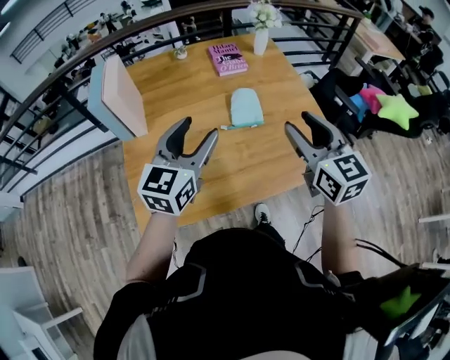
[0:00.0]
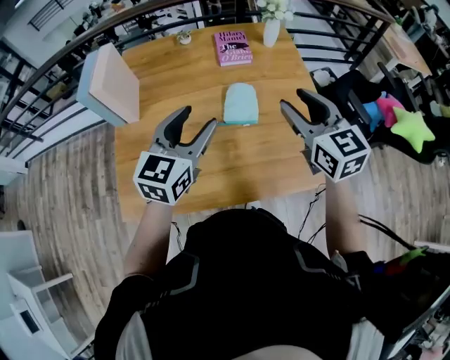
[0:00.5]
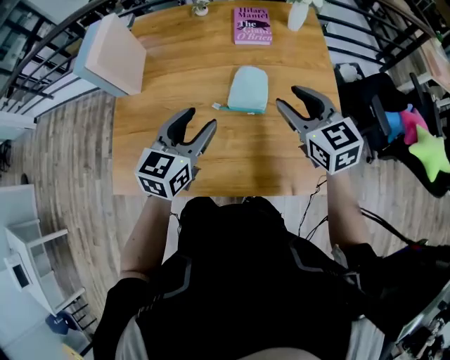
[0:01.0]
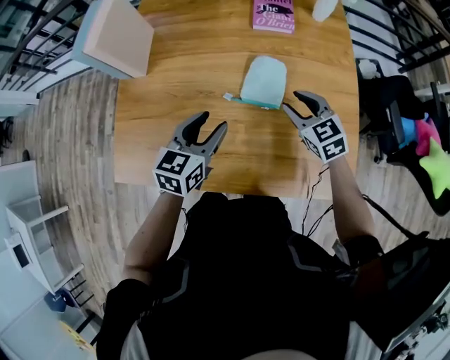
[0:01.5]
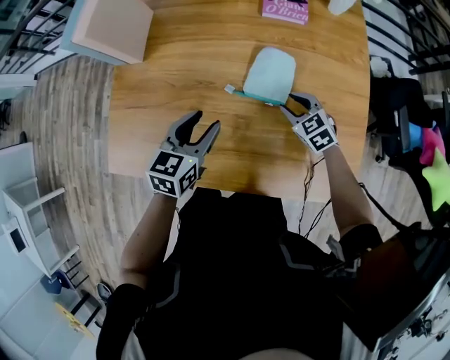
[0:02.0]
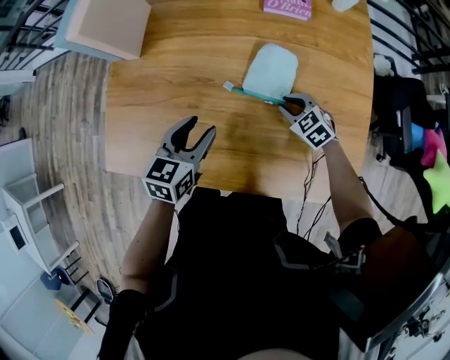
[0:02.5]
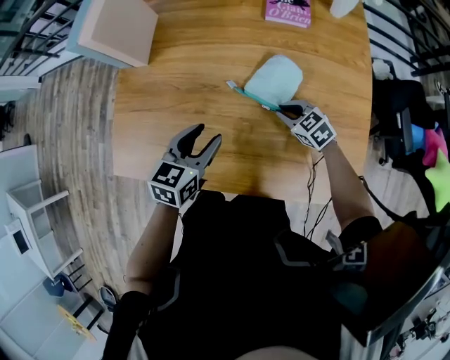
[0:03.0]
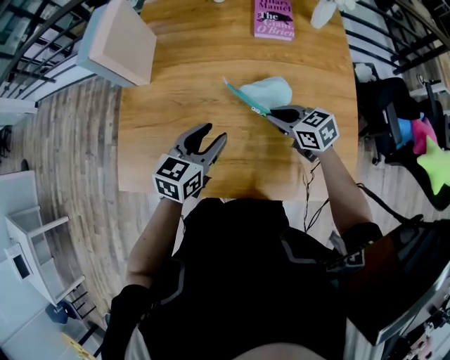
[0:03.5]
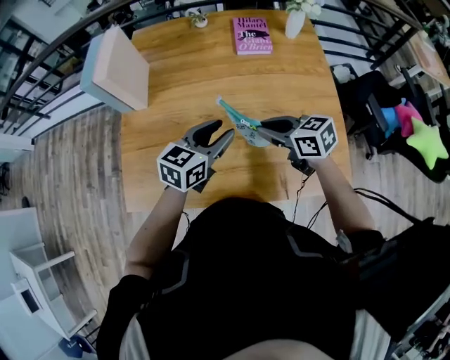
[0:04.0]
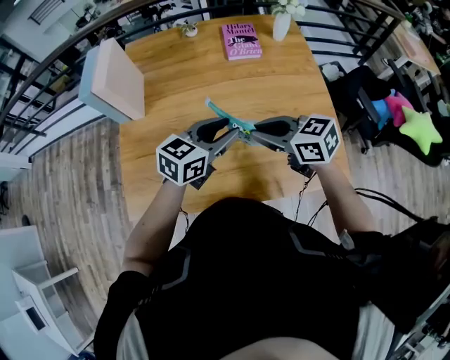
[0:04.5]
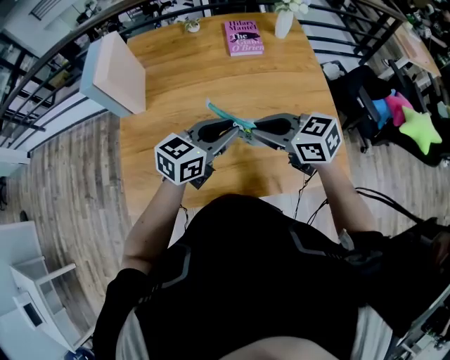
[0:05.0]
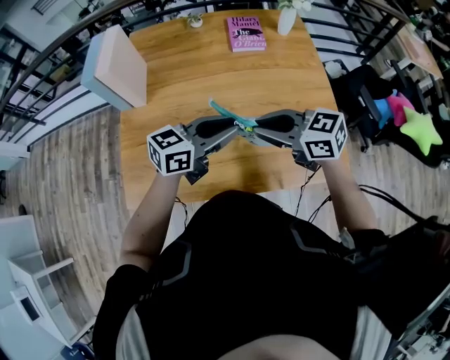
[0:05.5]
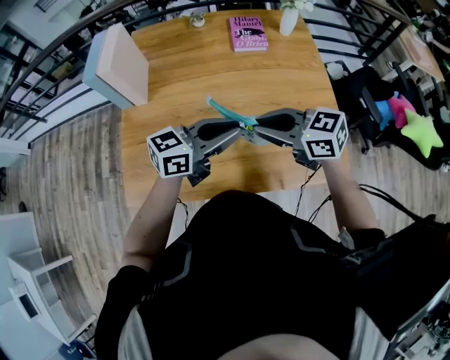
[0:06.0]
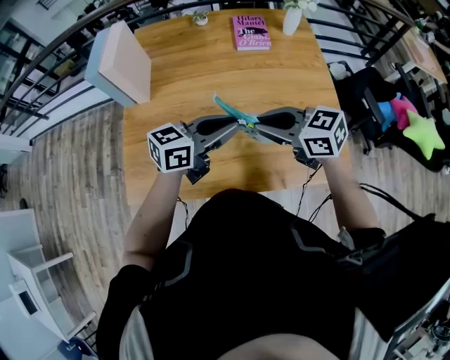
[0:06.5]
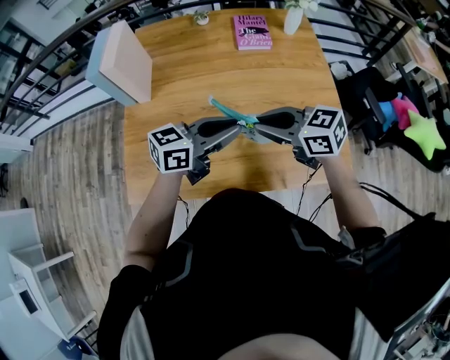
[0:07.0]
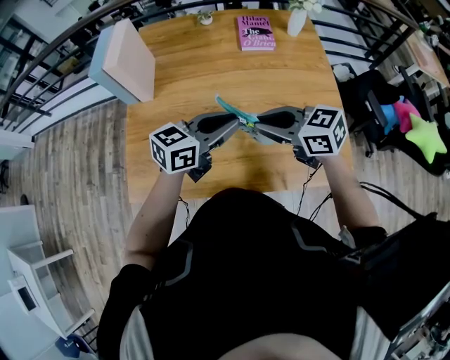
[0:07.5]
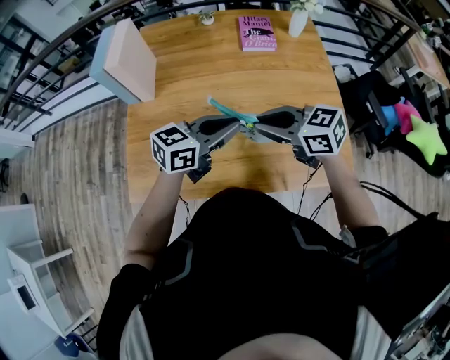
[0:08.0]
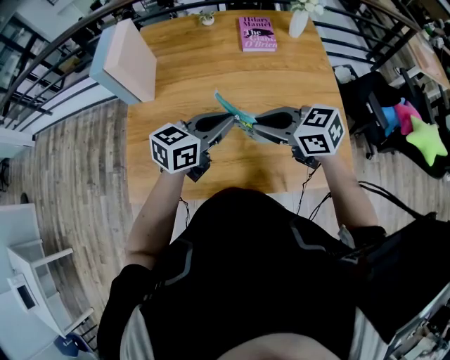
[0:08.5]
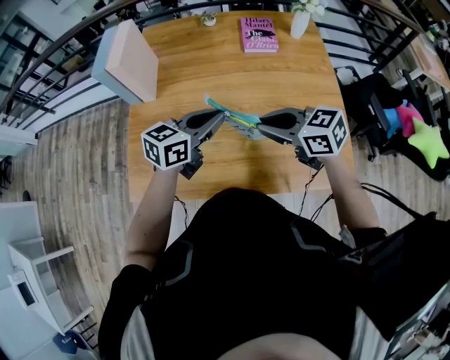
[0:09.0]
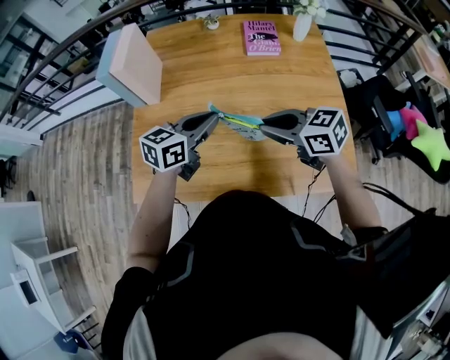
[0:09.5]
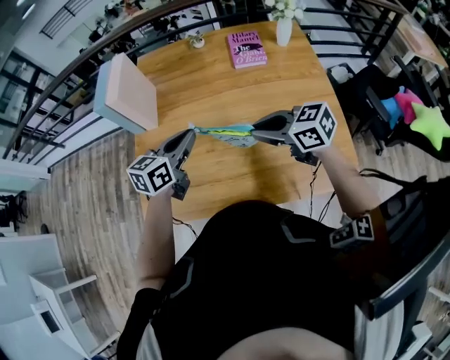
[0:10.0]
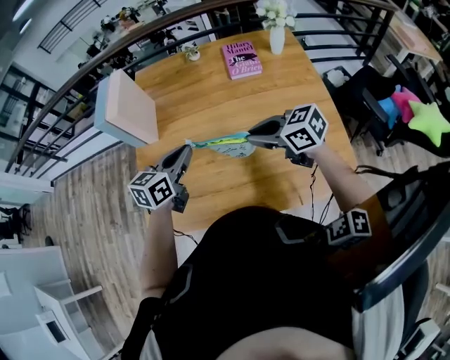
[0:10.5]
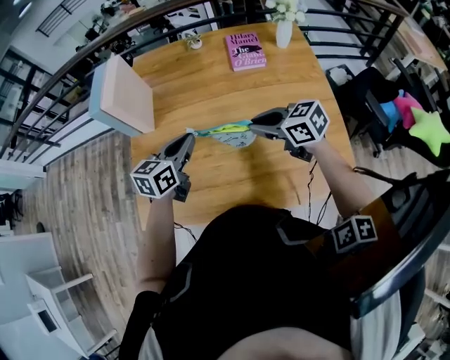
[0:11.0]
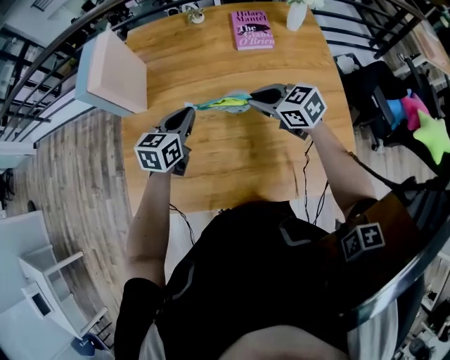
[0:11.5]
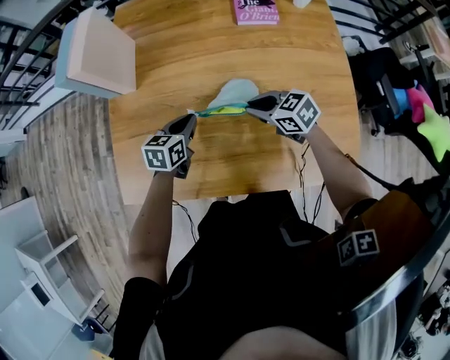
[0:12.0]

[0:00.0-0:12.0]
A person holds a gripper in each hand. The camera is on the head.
0:00.0 to 0:02.0: The left gripper goes some 20 cm downward, and turns by about 40 degrees, while the right gripper goes approximately 35 cm downward, and points its fingers approximately 40 degrees further downward.
0:02.0 to 0:04.0: The right gripper is displaced upward and to the left by some 20 cm, turns by roughly 30 degrees, and closes, while the left gripper is displaced upward by approximately 5 cm, and rotates roughly 20 degrees.
0:04.0 to 0:06.0: The grippers both shift upward by approximately 5 cm. The left gripper swivels some 30 degrees, and closes up.
0:06.0 to 0:08.0: The grippers move only a little.
0:08.0 to 0:10.0: The left gripper moves some 10 cm, and changes its angle by some 20 degrees.
0:10.0 to 0:12.0: The right gripper goes about 20 cm downward and forward. Meanwhile the left gripper heads downward, covering some 20 cm, and swivels about 20 degrees.

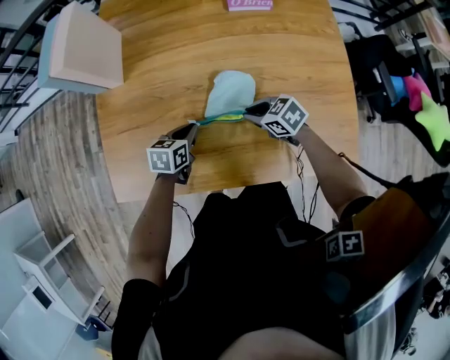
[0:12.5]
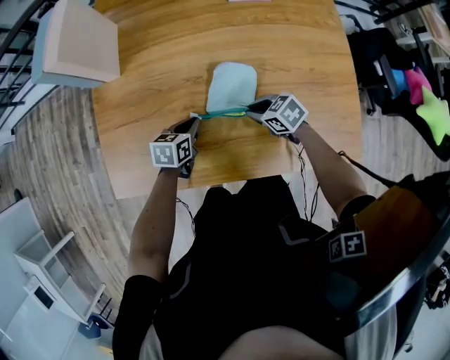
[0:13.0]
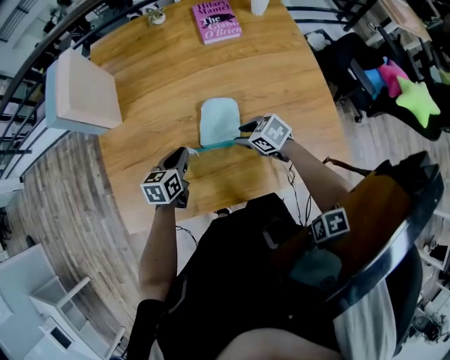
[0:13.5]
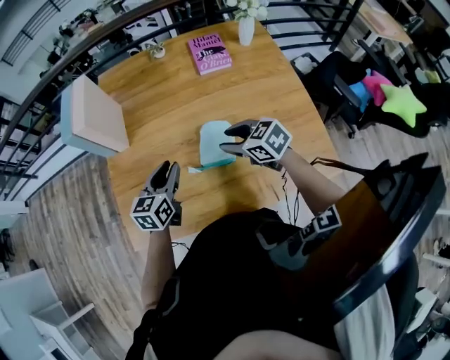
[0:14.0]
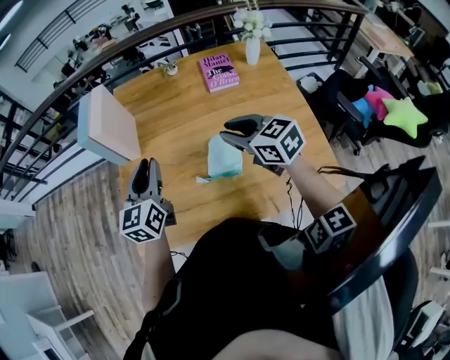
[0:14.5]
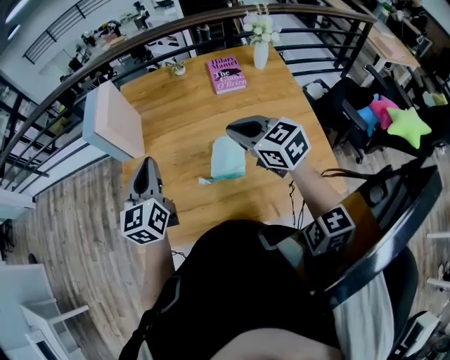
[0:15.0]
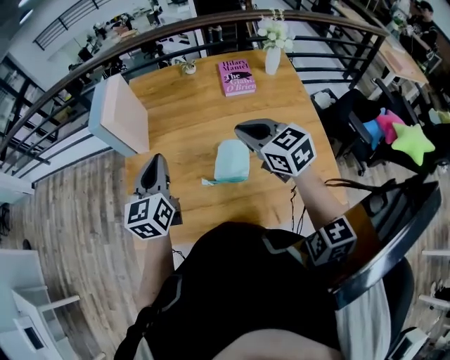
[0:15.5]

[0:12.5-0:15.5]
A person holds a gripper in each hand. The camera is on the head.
0:12.5 to 0:14.0: Both grippers move upward, about 20 cm. The left gripper turns by roughly 30 degrees, while the right gripper opens.
0:14.0 to 0:15.5: Both grippers travel together upward, some 15 cm. The left gripper turns by about 20 degrees, while the right gripper changes its angle by approximately 20 degrees, and closes its fingers.

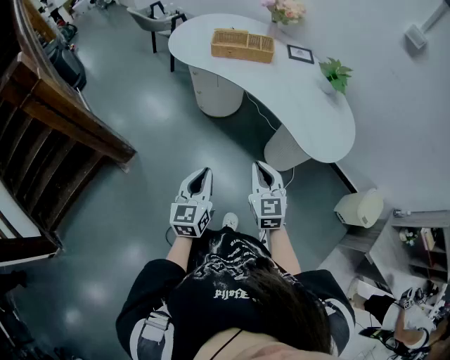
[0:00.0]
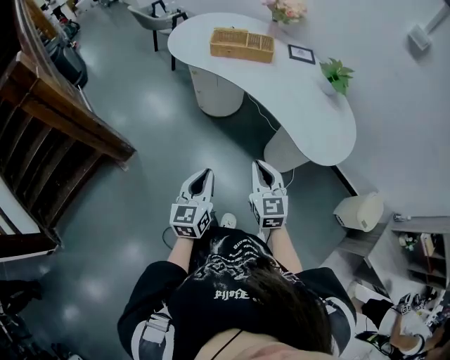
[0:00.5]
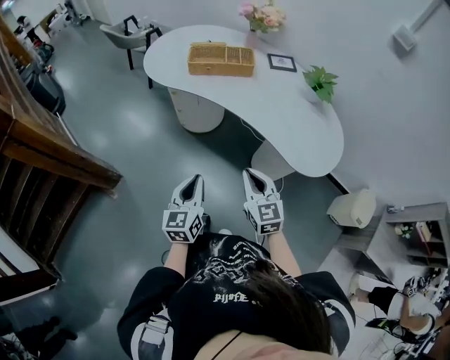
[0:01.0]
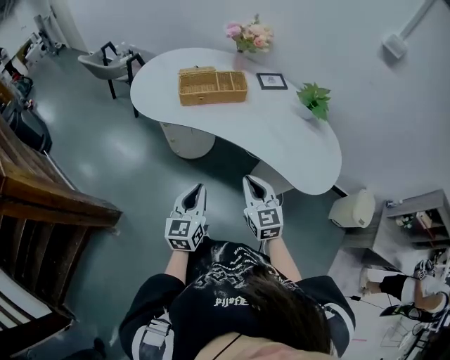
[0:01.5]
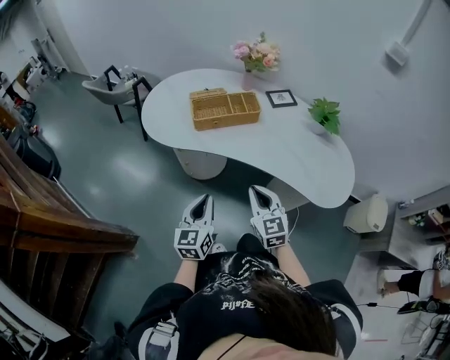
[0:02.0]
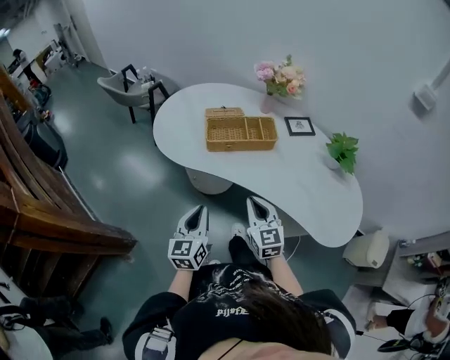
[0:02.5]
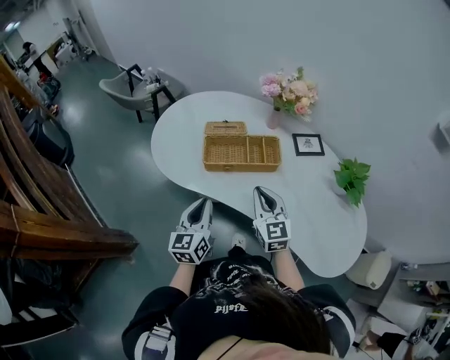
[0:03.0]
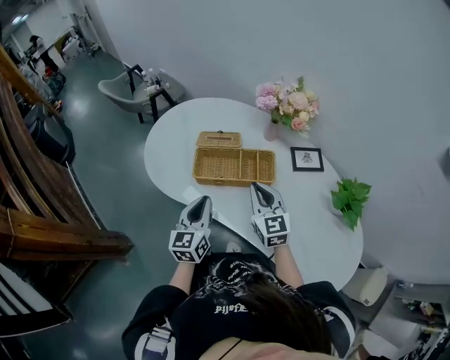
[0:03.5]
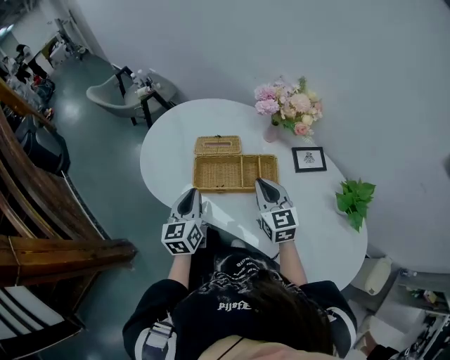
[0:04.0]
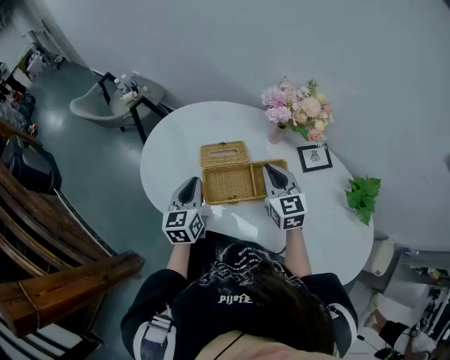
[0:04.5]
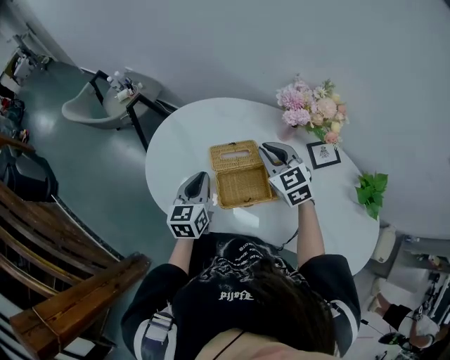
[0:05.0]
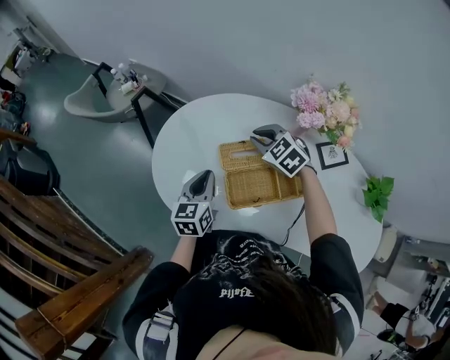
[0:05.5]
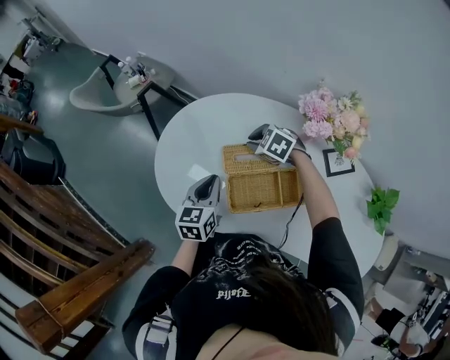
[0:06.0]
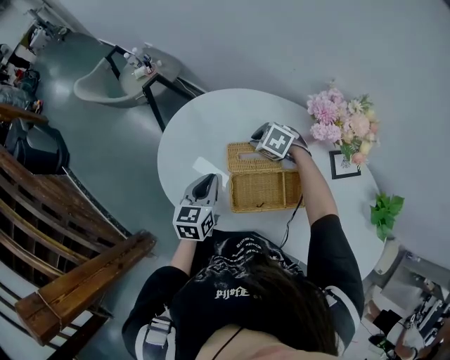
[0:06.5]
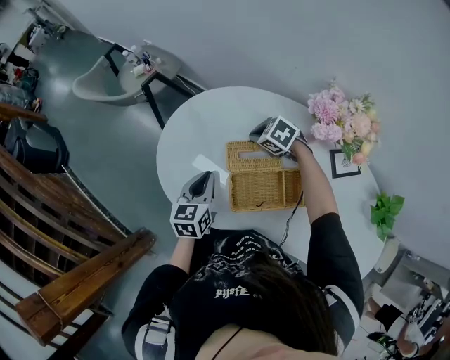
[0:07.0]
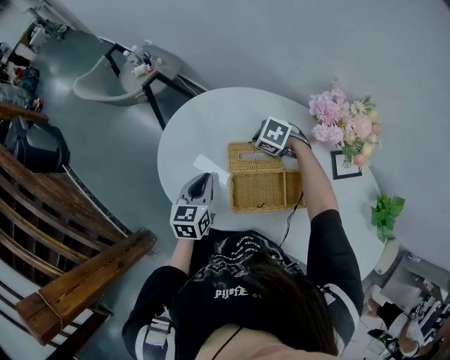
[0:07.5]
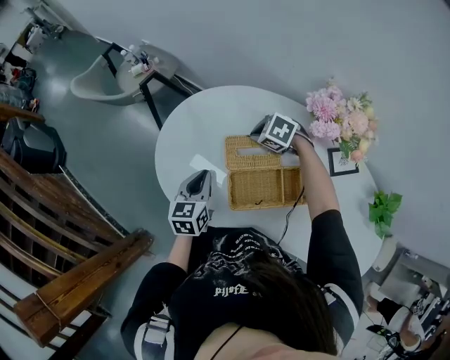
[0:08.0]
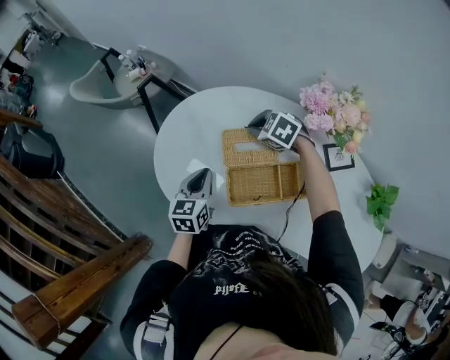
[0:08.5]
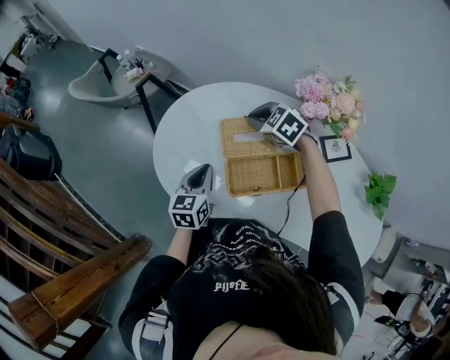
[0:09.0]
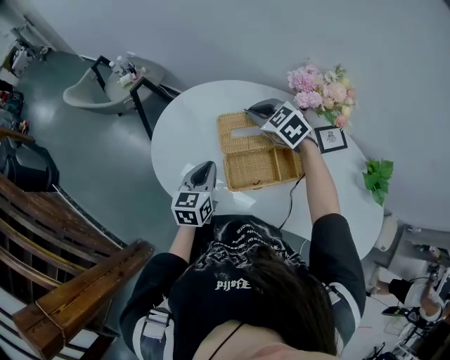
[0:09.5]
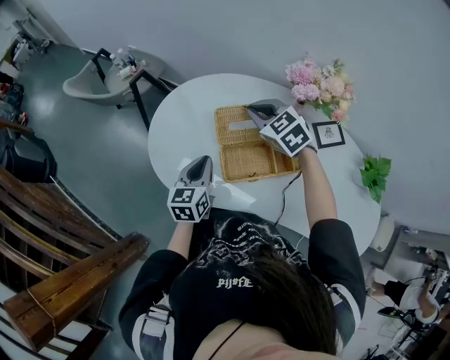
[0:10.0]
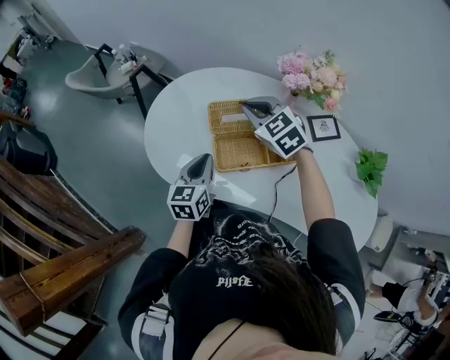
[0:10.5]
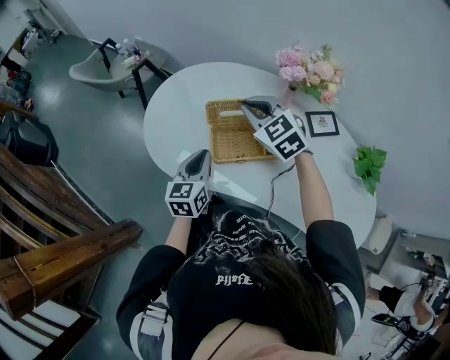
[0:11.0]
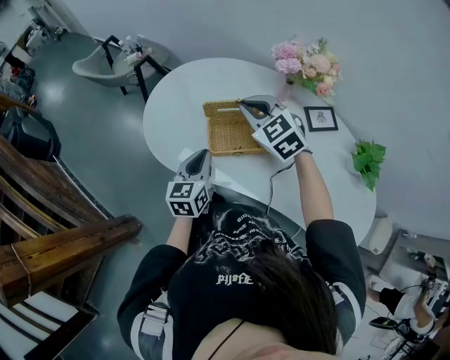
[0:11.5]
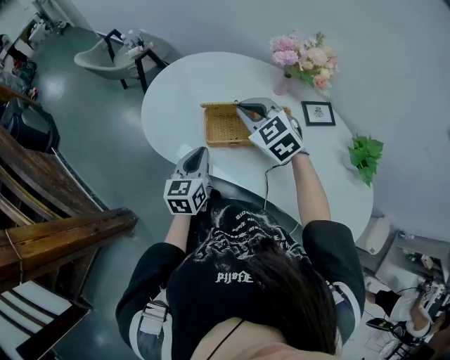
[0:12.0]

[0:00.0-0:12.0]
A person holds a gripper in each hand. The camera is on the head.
0:00.0 to 0:02.0: The left gripper goes approximately 30 cm forward. Meanwhile the right gripper shifts approximately 25 cm forward and to the left.
0:02.0 to 0:04.0: The two grippers go approximately 40 cm forward.
0:04.0 to 0:06.0: The right gripper shifts approximately 30 cm forward, to the left and downward, and tips its fingers downward by roughly 40 degrees. Meanwhile the left gripper travels forward by approximately 15 cm, and turns by roughly 20 degrees.
0:06.0 to 0:08.0: The grippers stay close to where they were, moving slightly.
0:08.0 to 0:10.0: The left gripper moves some 5 cm. The right gripper goes approximately 15 cm upward, and rotates some 40 degrees.
0:10.0 to 0:12.0: Both grippers move backward, about 15 cm.
